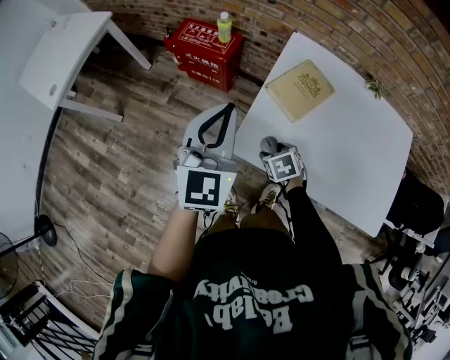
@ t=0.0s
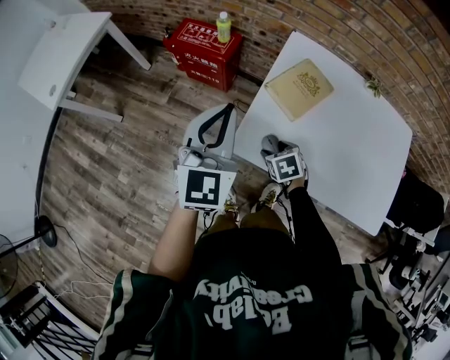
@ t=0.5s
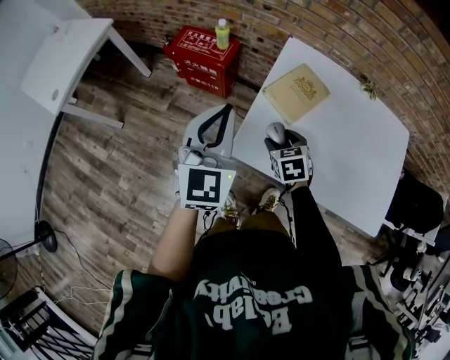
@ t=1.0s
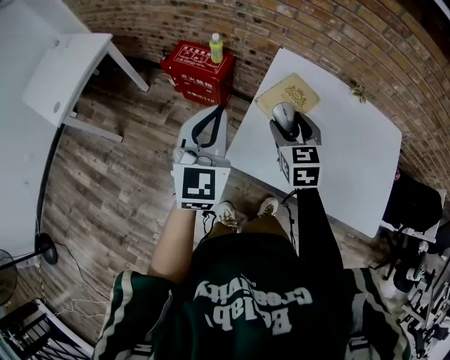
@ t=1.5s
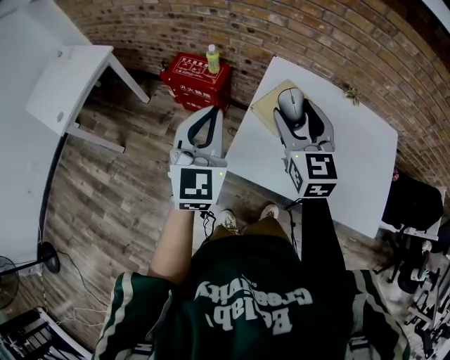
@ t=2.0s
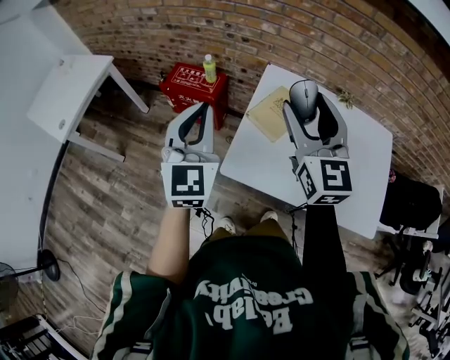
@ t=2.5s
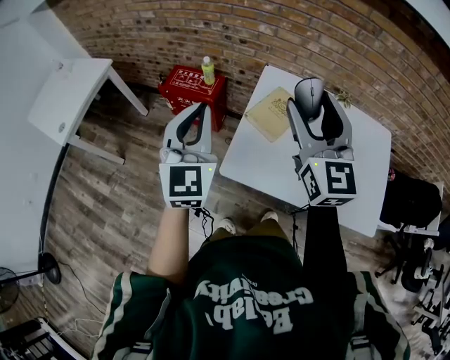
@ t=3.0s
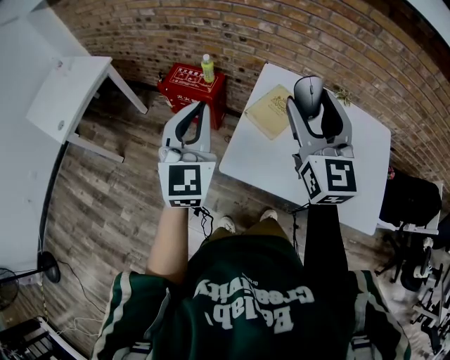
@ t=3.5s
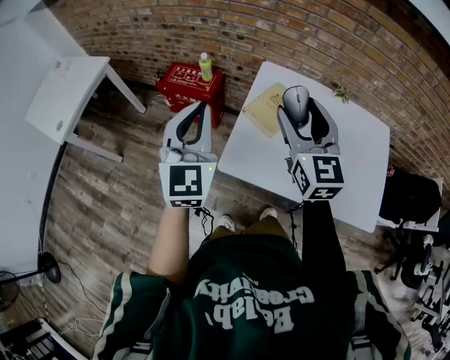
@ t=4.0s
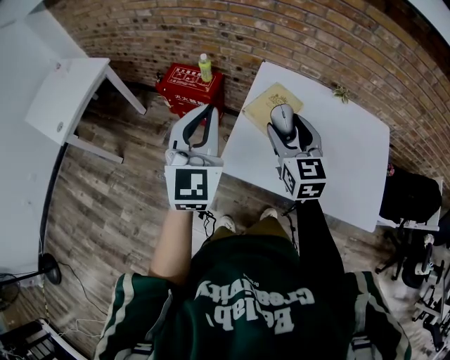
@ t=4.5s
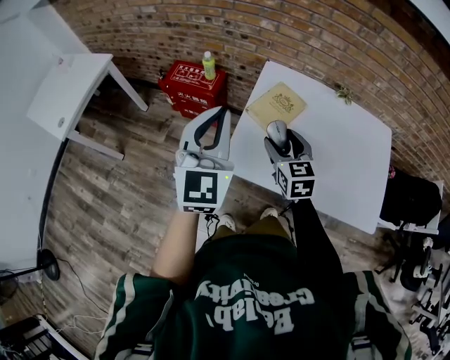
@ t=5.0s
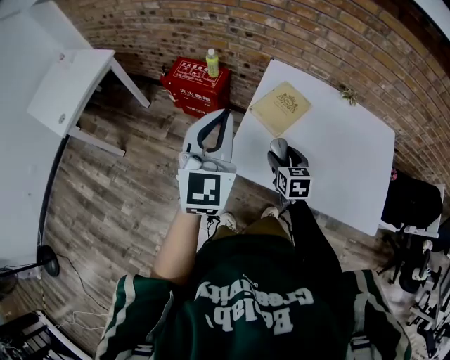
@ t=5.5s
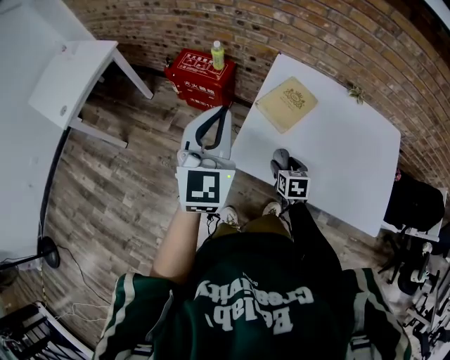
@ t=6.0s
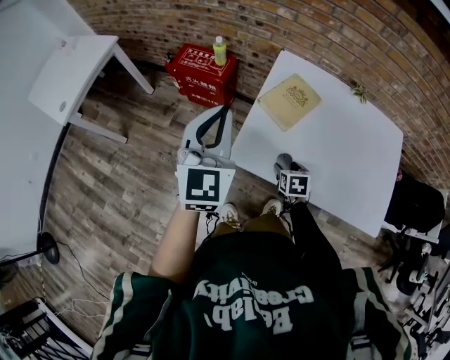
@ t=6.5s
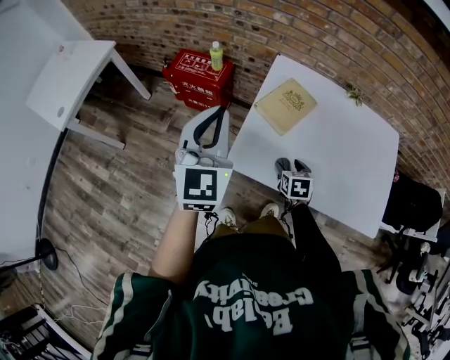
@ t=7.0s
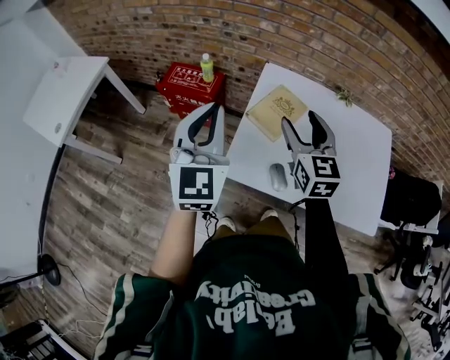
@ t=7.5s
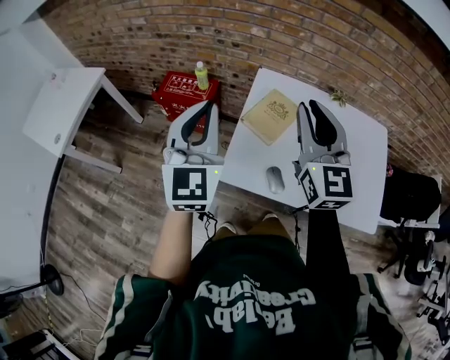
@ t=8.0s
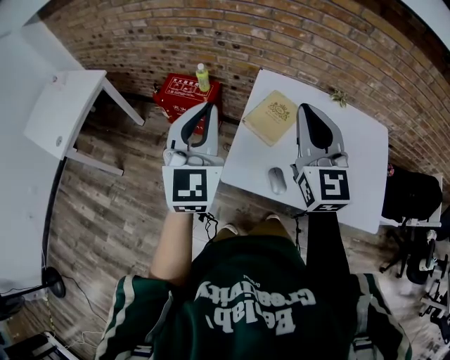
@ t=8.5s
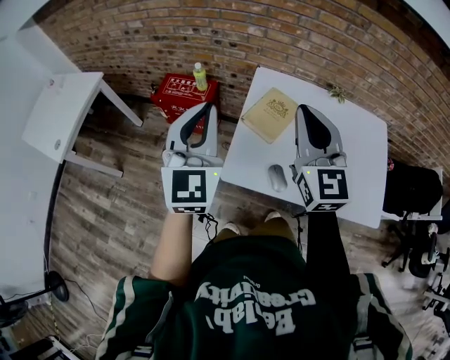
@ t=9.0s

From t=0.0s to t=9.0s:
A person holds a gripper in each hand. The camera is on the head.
From t=0.0s to t=2.0s: The right gripper goes roughly 35 cm upward, and tilts its fingers some 60 degrees upward; the left gripper heads upward, covering approximately 5 cm.
From t=2.0s to t=4.5s: The right gripper travels upward and back again, roughly 10 cm each way.
From t=4.5s to t=7.0s: The right gripper is displaced downward by some 30 cm, and tilts its fingers some 40 degrees downward.
From t=7.0s to t=9.0s: The left gripper travels upward by about 5 cm. Meanwhile the right gripper is displaced upward by approximately 40 cm, angles its fingers upward, by approximately 50 degrees, and closes up.

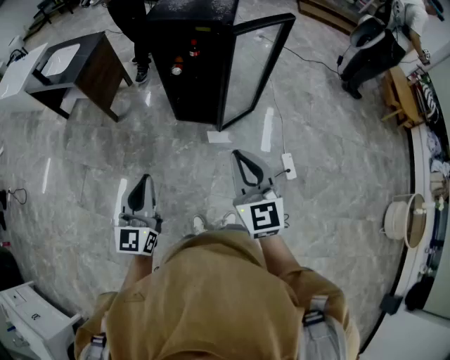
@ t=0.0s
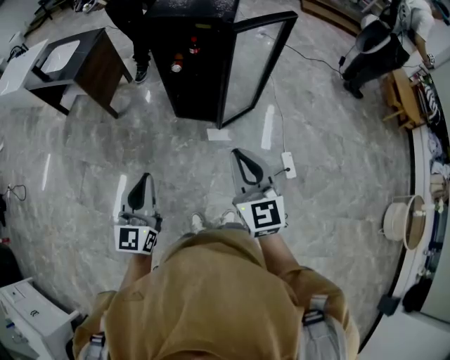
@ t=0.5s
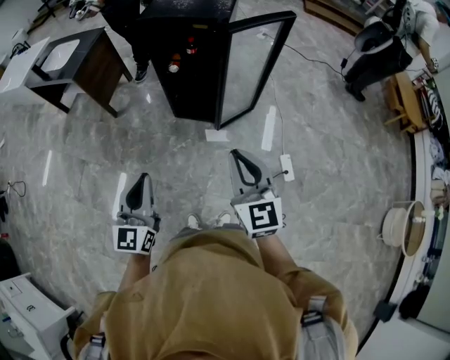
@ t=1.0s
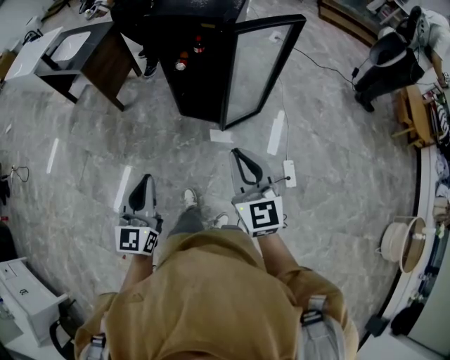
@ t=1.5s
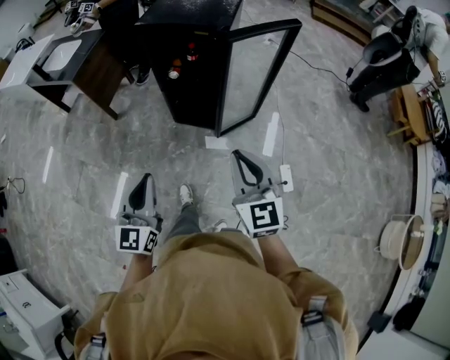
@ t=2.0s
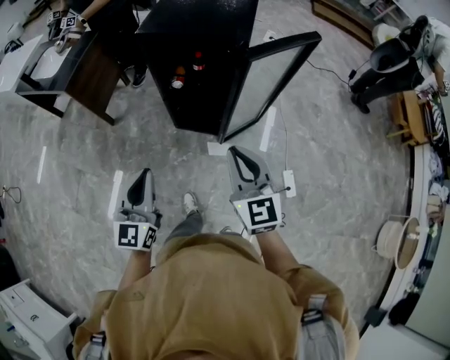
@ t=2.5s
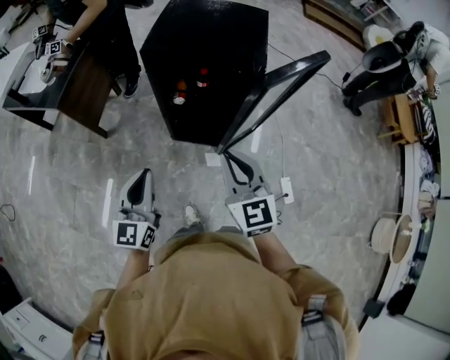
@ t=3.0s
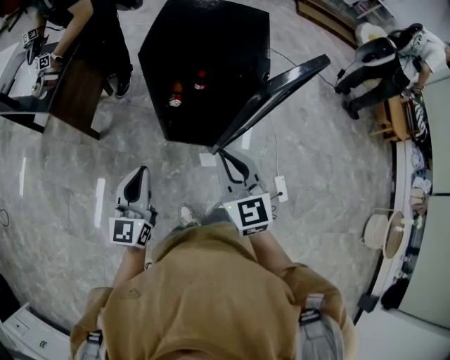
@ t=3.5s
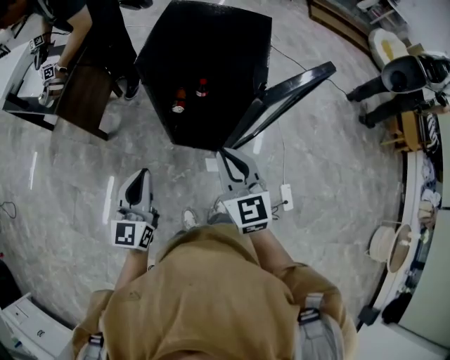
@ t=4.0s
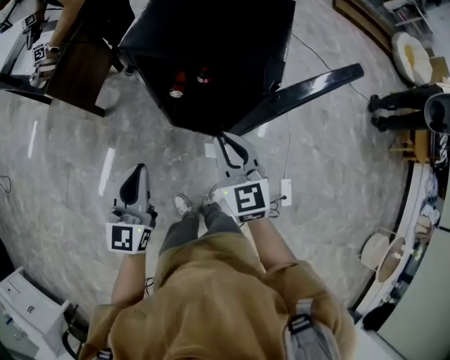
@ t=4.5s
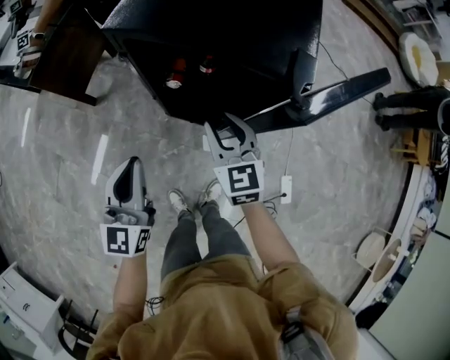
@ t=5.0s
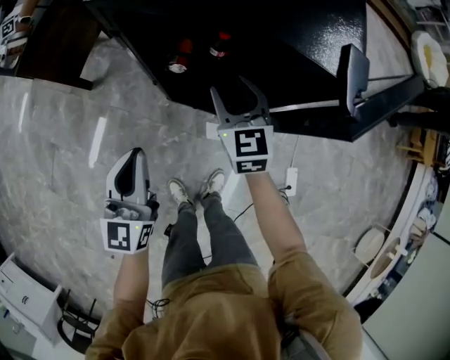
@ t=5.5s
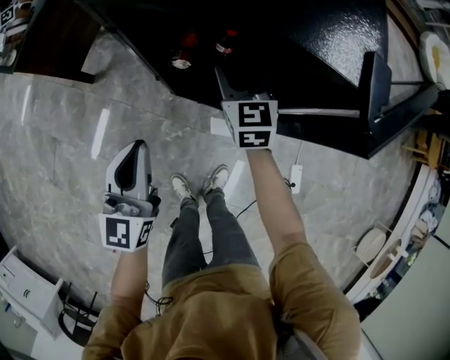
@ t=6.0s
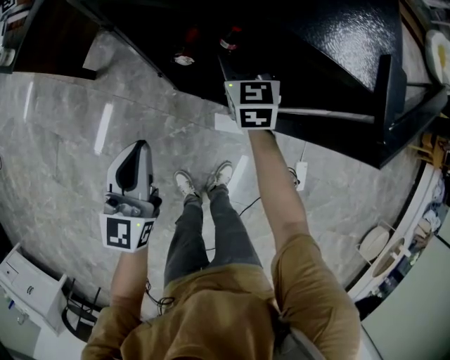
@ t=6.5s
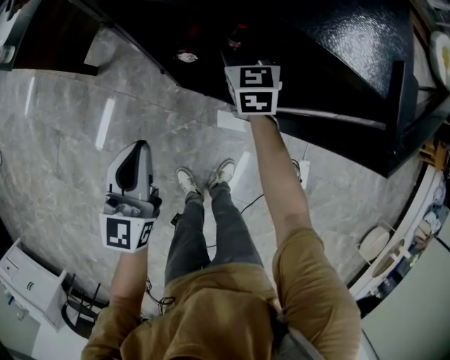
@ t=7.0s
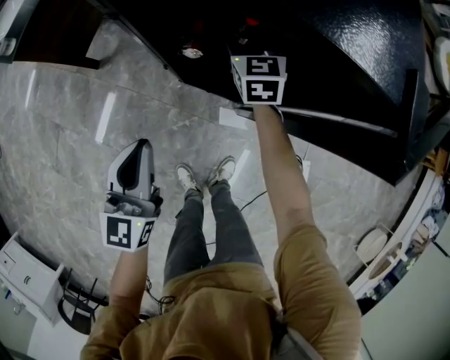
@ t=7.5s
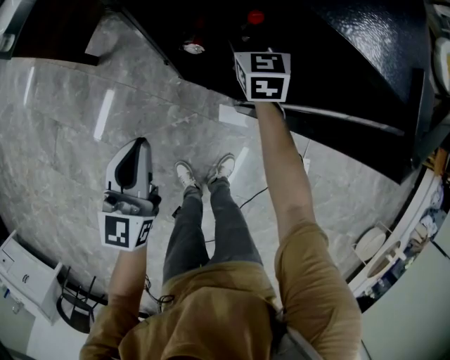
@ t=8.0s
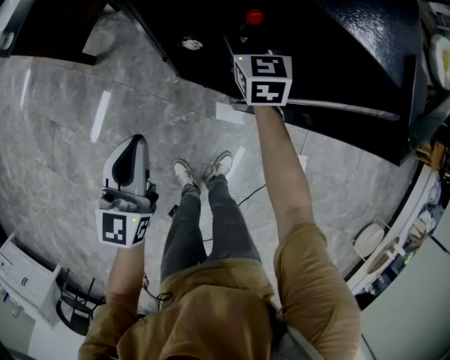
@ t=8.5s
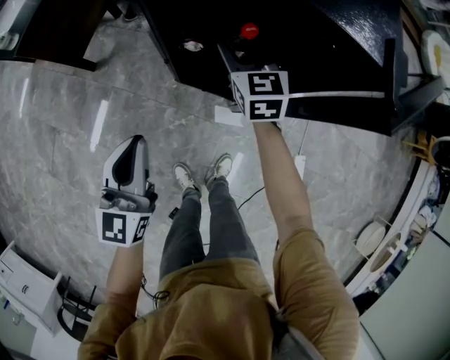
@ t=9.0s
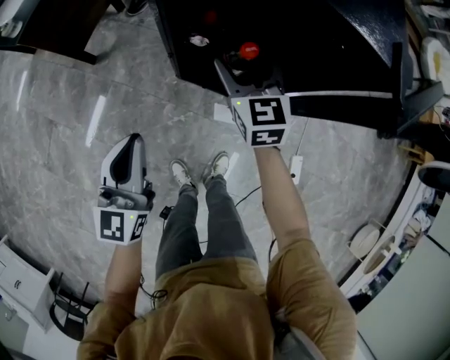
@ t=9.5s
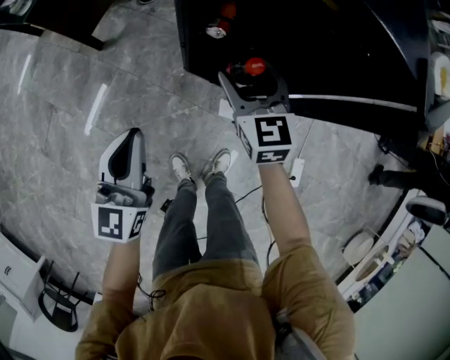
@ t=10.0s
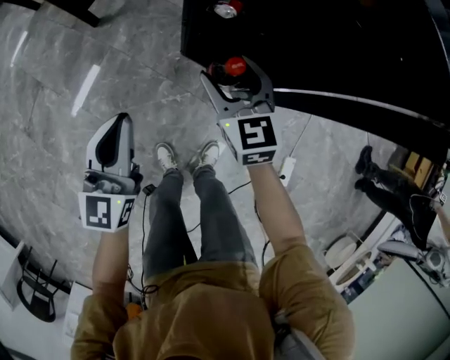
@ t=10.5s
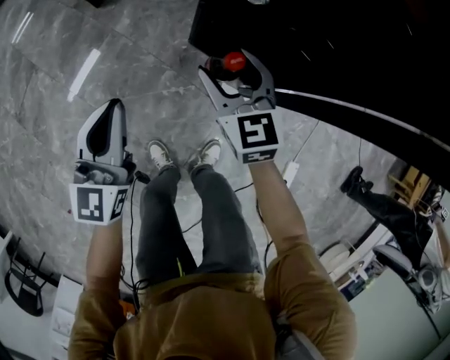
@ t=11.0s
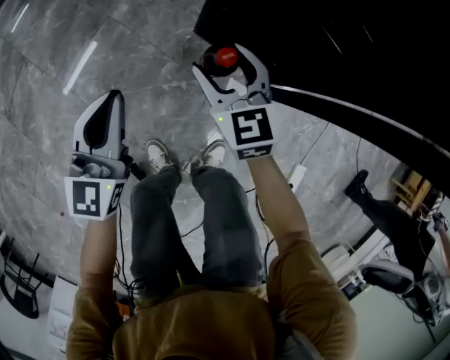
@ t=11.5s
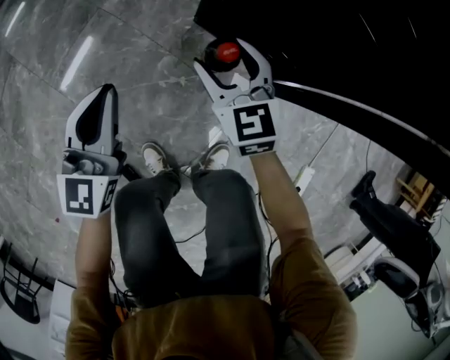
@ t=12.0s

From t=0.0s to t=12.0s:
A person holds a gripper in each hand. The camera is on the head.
From t=0.0s to t=2.0s: The left gripper shifts roughly 10 cm to the right and forward. The right gripper goes approximately 10 cm forward and to the right.
From t=2.0s to t=4.0s: The right gripper heads forward and to the left, covering some 30 cm. The left gripper heads forward, covering approximately 30 cm.
From t=4.0s to t=6.0s: The right gripper travels forward and downward by approximately 40 cm, and opens up; the left gripper is displaced downward and forward by some 20 cm.
From t=6.0s to t=8.0s: The right gripper moves forward, about 10 cm.
From t=8.0s to t=10.0s: The left gripper shifts about 10 cm to the left and backward. The right gripper heads backward, covering approximately 15 cm.
From t=10.0s to t=12.0s: Both grippers move downward, approximately 35 cm.

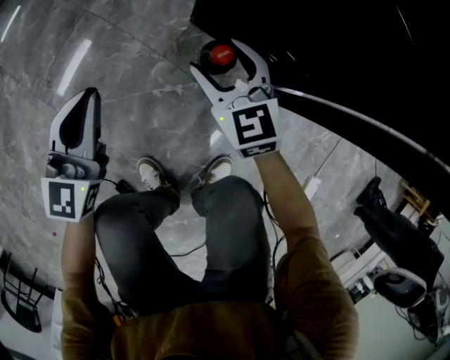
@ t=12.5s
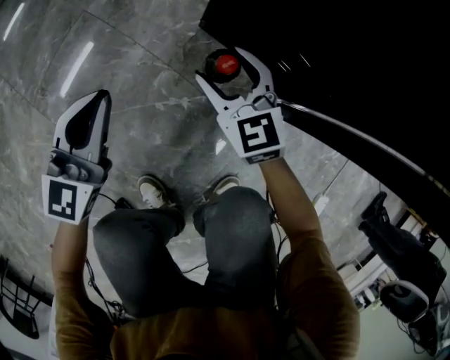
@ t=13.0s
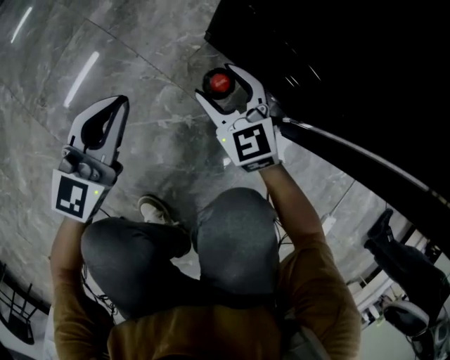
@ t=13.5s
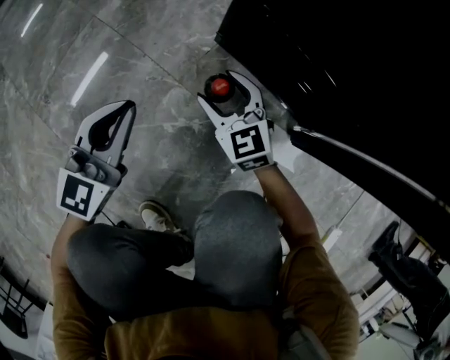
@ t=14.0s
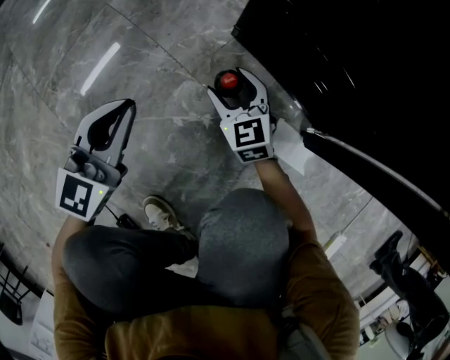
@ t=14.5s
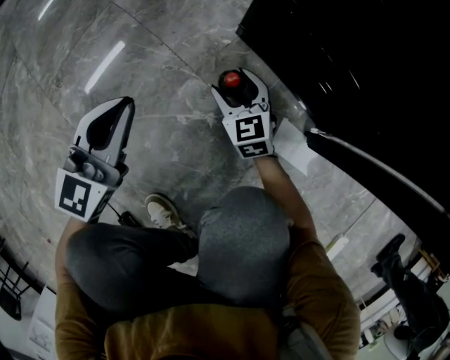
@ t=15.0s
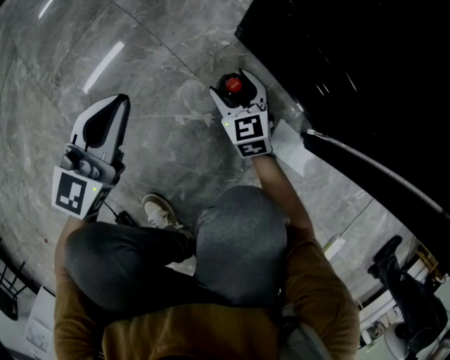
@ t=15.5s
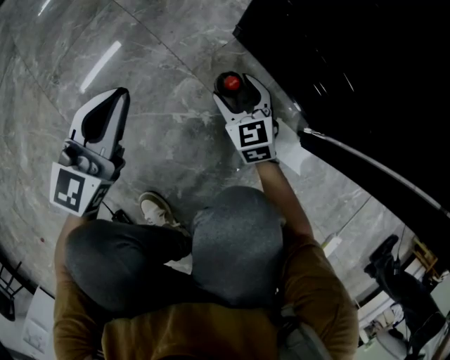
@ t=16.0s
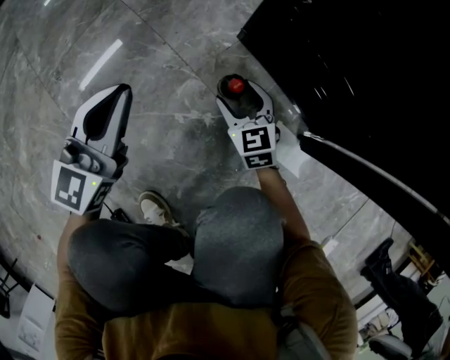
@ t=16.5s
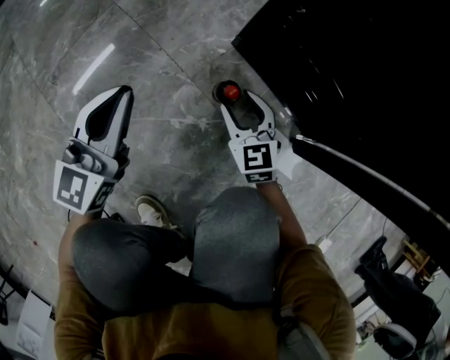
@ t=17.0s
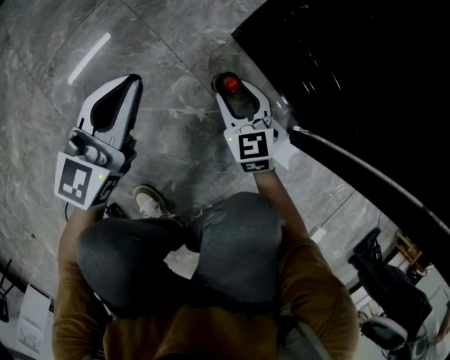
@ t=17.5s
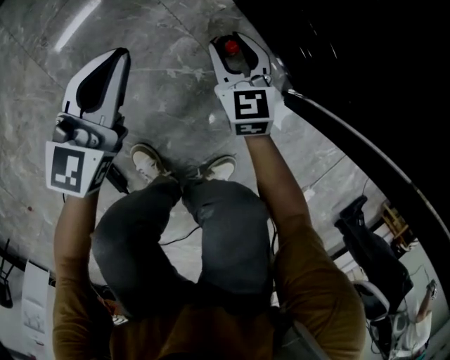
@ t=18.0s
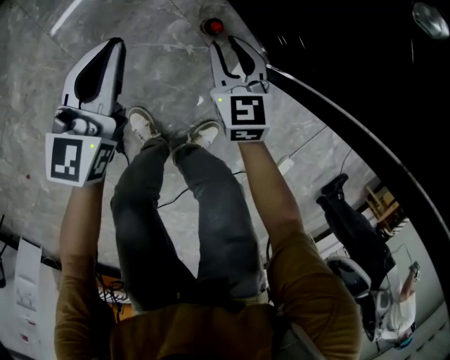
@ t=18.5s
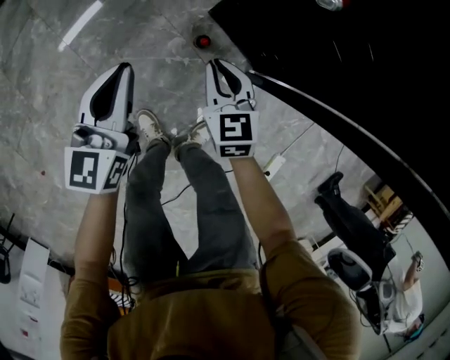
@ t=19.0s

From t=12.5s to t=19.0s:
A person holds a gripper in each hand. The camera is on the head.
From t=12.5s to t=14.5s: Both grippers move downward, some 25 cm.
From t=14.5s to t=17.0s: The right gripper changes place by about 5 cm.
From t=17.0s to t=19.0s: The two grippers go roughly 40 cm upward. The right gripper closes.
